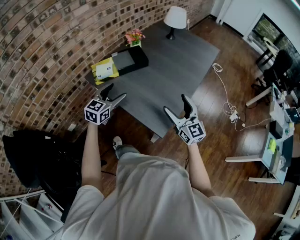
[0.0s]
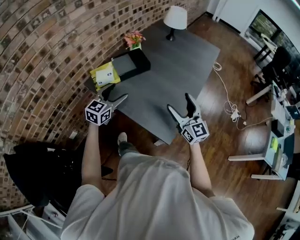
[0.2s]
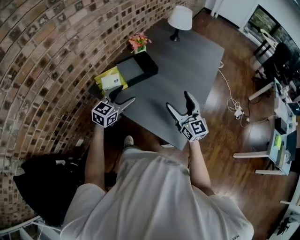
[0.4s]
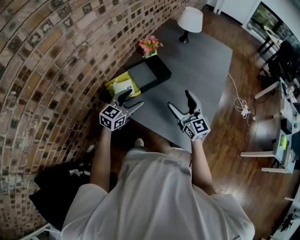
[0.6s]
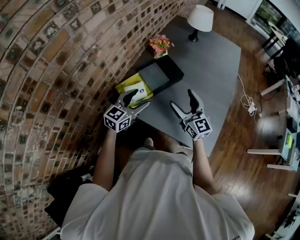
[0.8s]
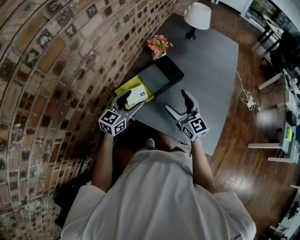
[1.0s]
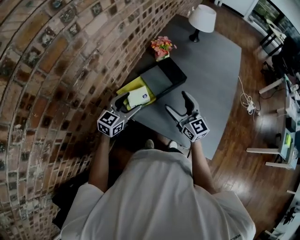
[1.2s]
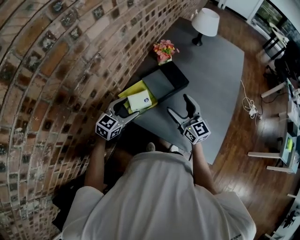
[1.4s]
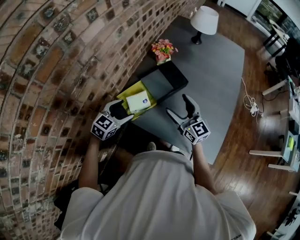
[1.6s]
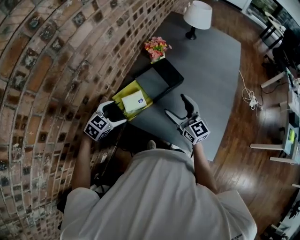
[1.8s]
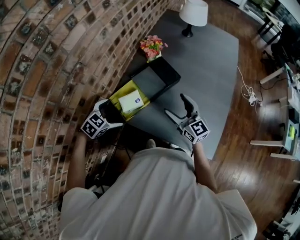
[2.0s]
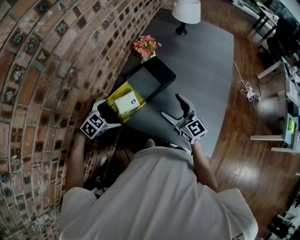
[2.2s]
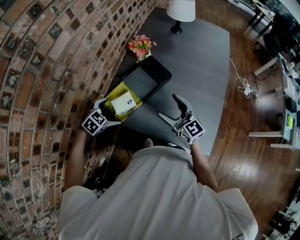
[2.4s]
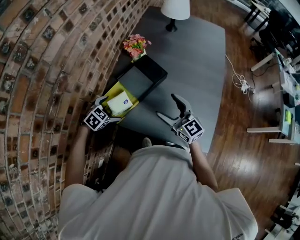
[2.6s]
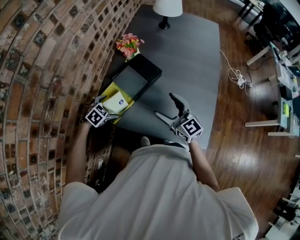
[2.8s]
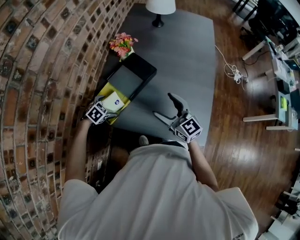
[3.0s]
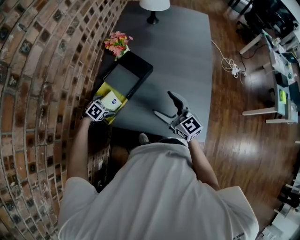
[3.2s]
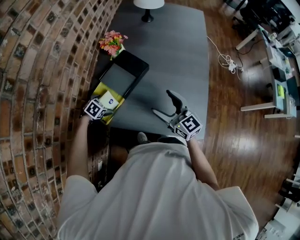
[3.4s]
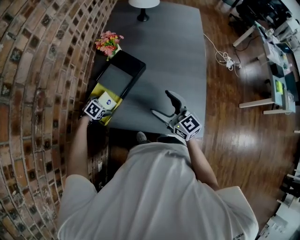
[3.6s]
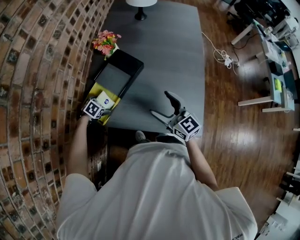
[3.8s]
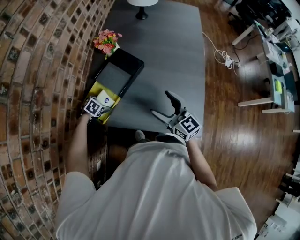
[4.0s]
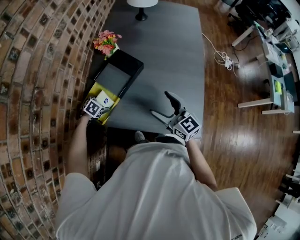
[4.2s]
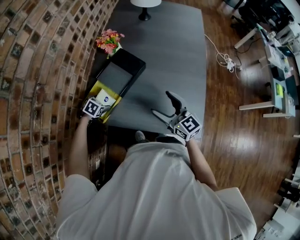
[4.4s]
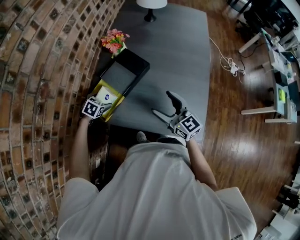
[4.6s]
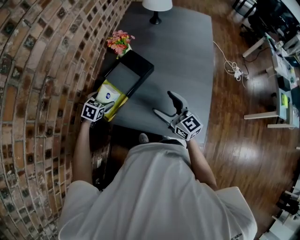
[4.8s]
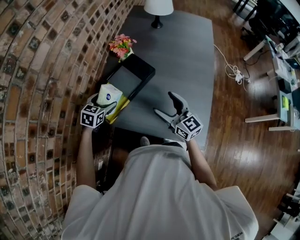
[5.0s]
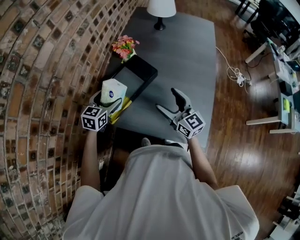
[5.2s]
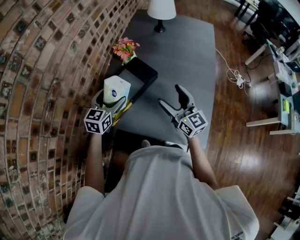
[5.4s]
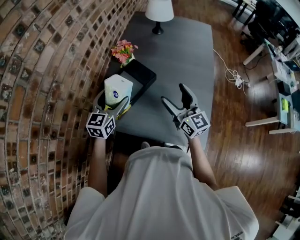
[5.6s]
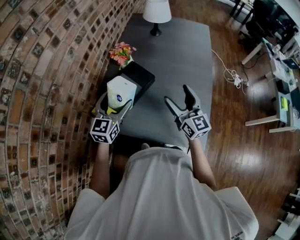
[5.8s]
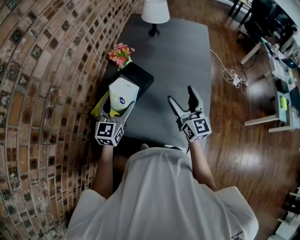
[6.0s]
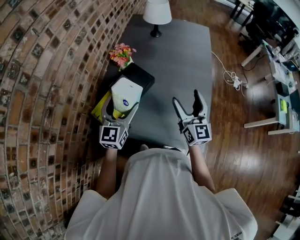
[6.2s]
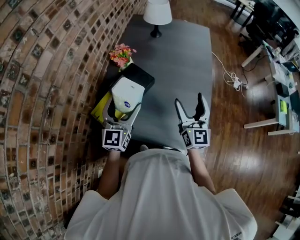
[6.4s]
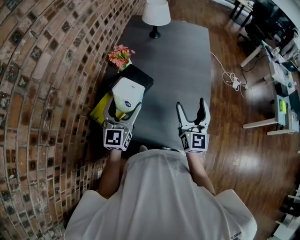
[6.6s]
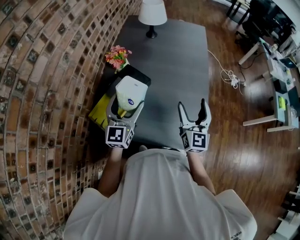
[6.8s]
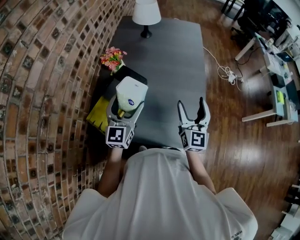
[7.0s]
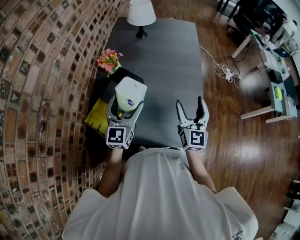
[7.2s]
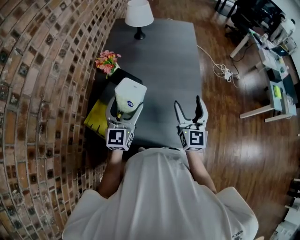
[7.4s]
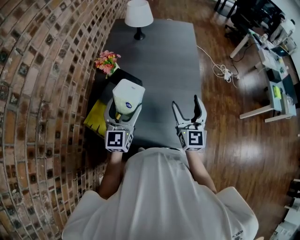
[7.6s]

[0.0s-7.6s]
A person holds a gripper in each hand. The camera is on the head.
0.0s to 1.6s: Both grippers travel together to the left and forward, approximately 35 cm. The left gripper changes its angle by roughly 30 degrees.
1.6s to 3.0s: The right gripper heads to the right, covering about 5 cm. The left gripper goes approximately 15 cm downward and forward, and points its fingers roughly 30 degrees further downward.
4.6s to 6.0s: The left gripper is displaced upward and to the right by some 30 cm, and tilts its fingers roughly 60 degrees upward. Meanwhile the right gripper is displaced upward and to the right by some 10 cm, and swivels approximately 20 degrees.
6.0s to 7.6s: The grippers both shift to the right by roughly 5 cm. The right gripper swivels approximately 20 degrees.

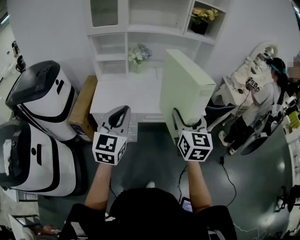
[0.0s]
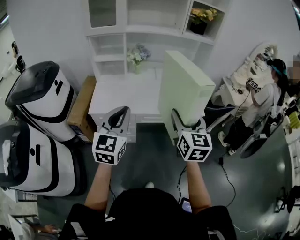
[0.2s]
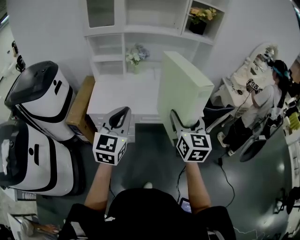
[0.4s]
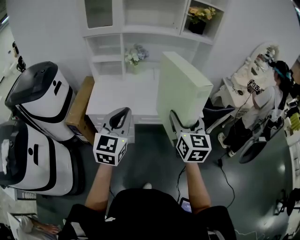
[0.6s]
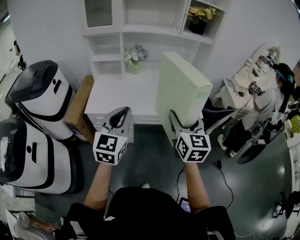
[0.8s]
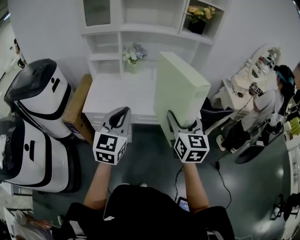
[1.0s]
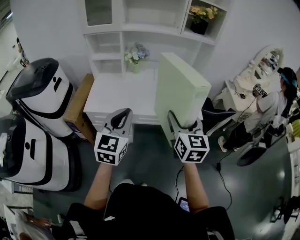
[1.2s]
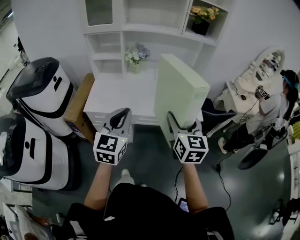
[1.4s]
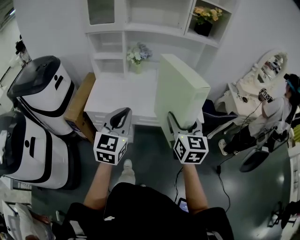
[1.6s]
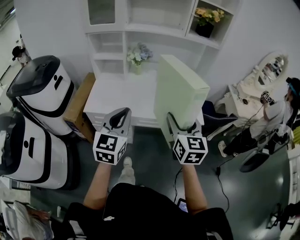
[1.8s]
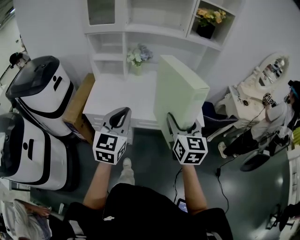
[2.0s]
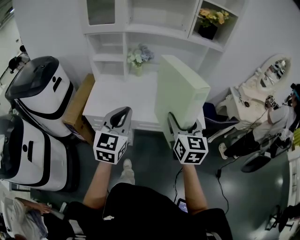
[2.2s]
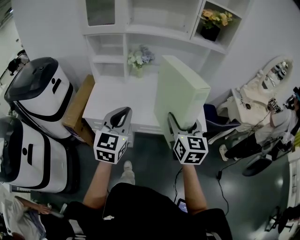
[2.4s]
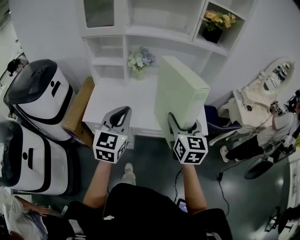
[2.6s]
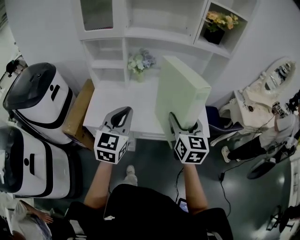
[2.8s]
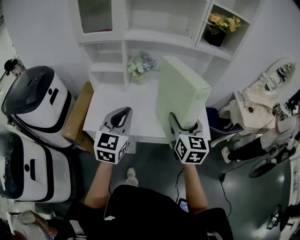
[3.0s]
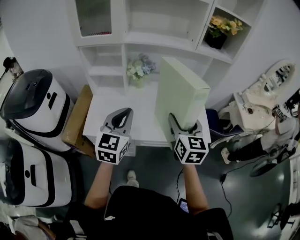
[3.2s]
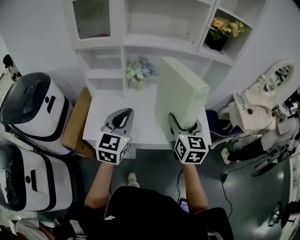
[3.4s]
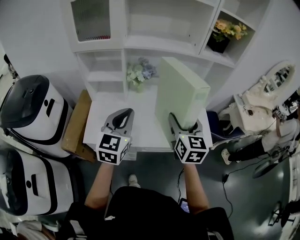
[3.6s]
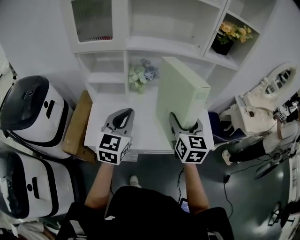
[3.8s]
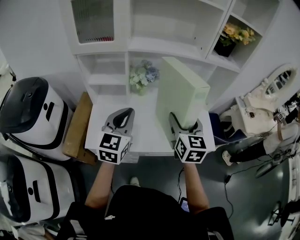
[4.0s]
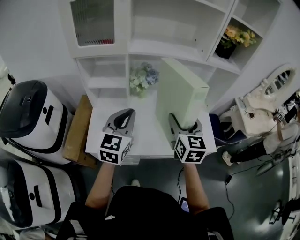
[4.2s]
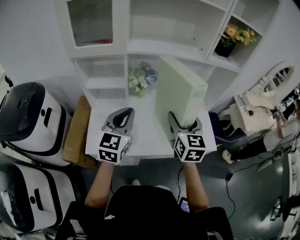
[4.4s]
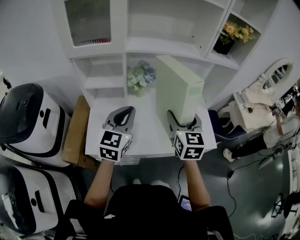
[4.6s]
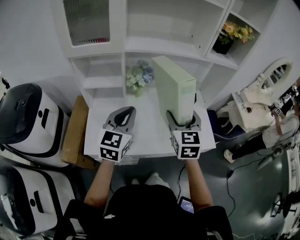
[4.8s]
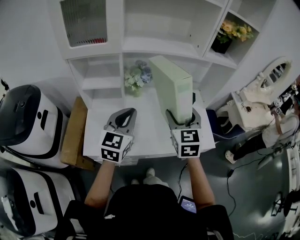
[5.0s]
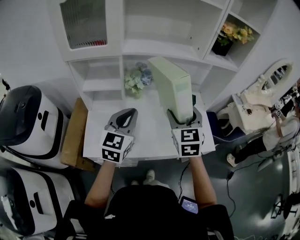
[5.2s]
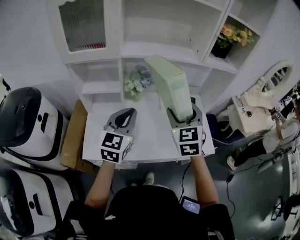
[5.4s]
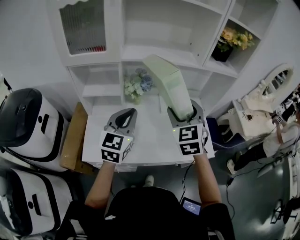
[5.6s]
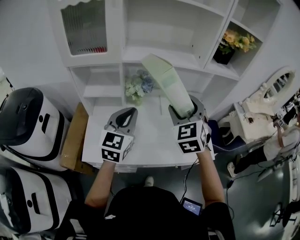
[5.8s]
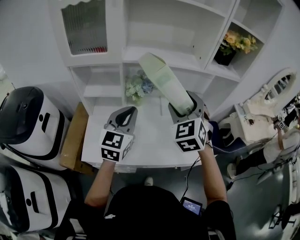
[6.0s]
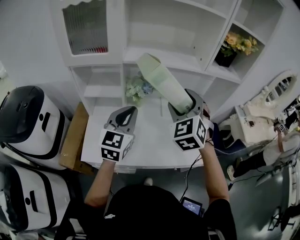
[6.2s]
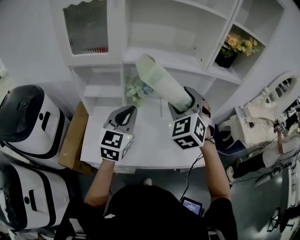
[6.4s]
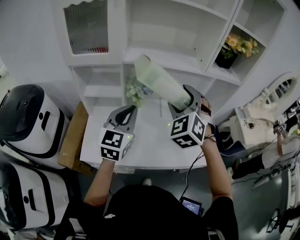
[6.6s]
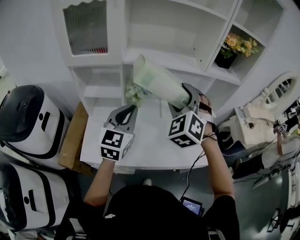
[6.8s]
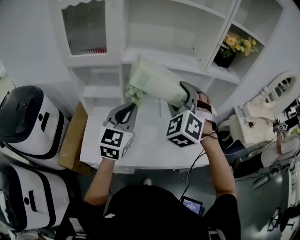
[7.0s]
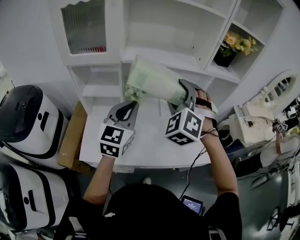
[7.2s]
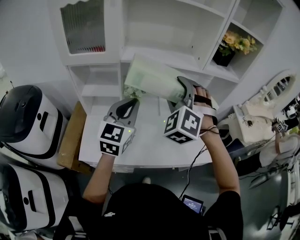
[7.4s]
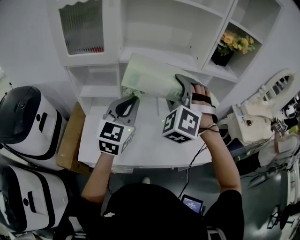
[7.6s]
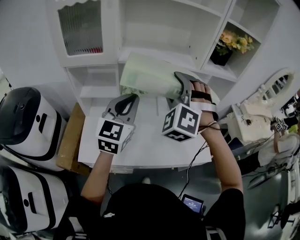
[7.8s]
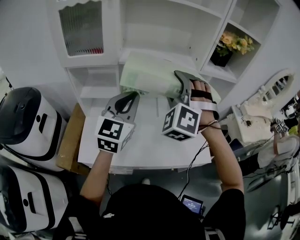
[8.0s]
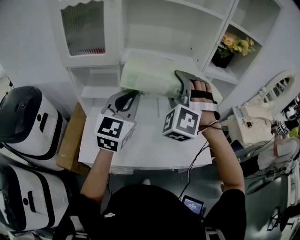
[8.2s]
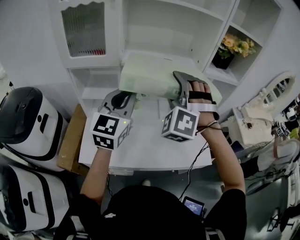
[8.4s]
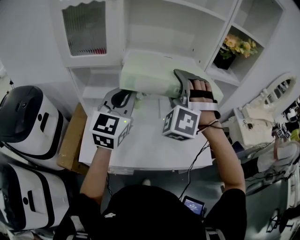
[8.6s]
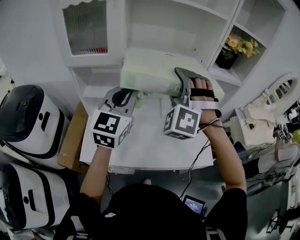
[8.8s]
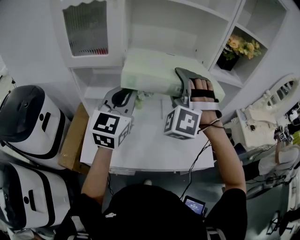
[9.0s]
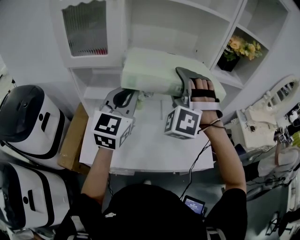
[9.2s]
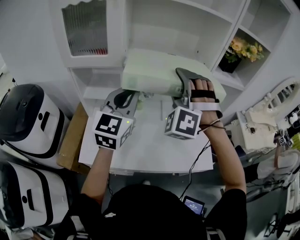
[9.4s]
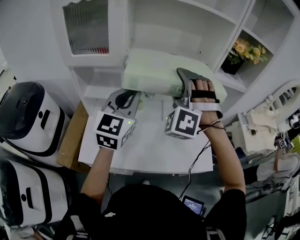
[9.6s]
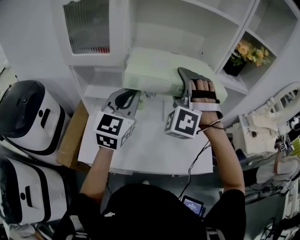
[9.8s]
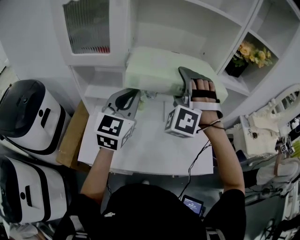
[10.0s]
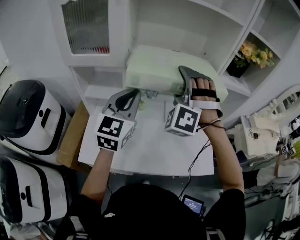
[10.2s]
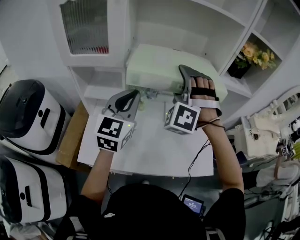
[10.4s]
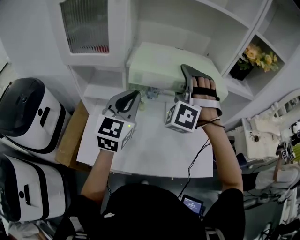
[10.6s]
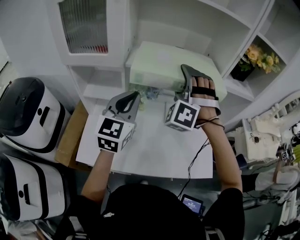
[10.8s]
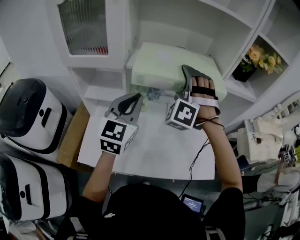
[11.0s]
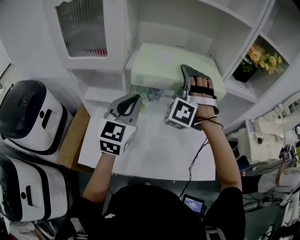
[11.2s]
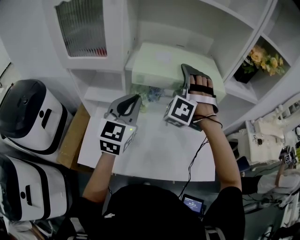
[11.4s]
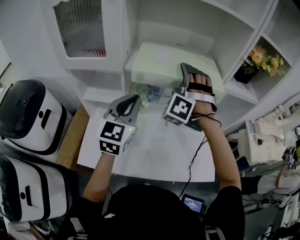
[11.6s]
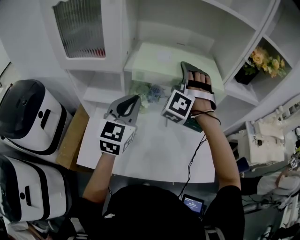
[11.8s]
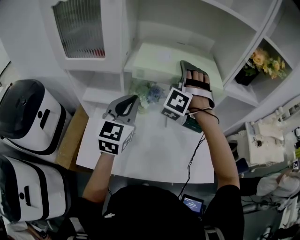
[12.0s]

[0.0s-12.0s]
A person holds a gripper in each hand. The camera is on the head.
0.0s to 1.6s: The left gripper travels to the right by about 10 cm. The right gripper travels forward and to the right by approximately 10 cm.
1.6s to 3.0s: The grippers both shift forward by about 15 cm.
3.0s to 4.4s: Both grippers move forward and to the left, some 15 cm.
4.4s to 6.0s: The right gripper moves forward and upward, roughly 10 cm, and rotates around the line of its fingers by some 40 degrees, counterclockwise from behind, while the left gripper heads forward, covering approximately 5 cm.
6.0s to 7.6s: The left gripper shifts by some 5 cm; the right gripper ends up some 5 cm from where it was, and changes its angle by roughly 30 degrees.
7.6s to 9.0s: The left gripper is displaced upward by some 5 cm.
9.0s to 10.4s: The right gripper is displaced forward by about 10 cm. Meanwhile the left gripper ends up about 5 cm from where it was.
10.4s to 12.0s: The left gripper shifts by approximately 5 cm. The right gripper is displaced forward by some 10 cm.

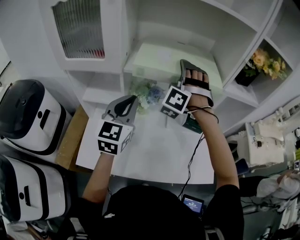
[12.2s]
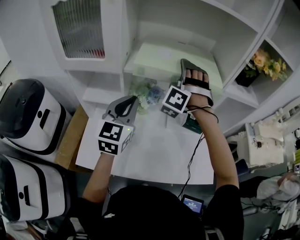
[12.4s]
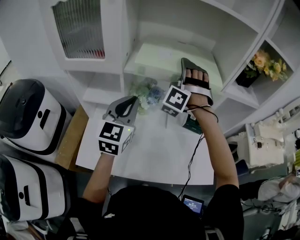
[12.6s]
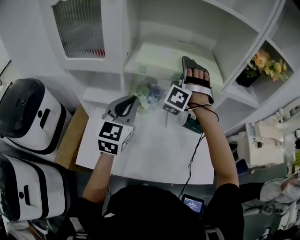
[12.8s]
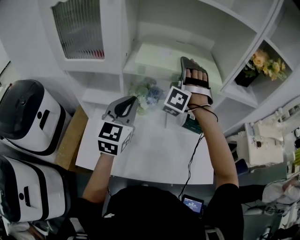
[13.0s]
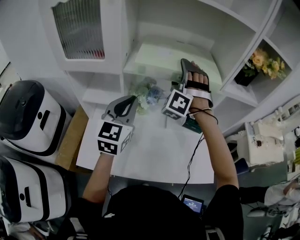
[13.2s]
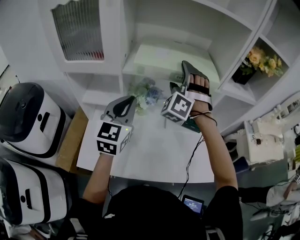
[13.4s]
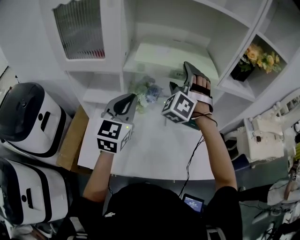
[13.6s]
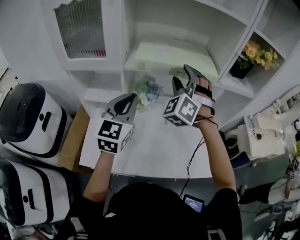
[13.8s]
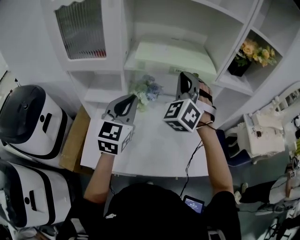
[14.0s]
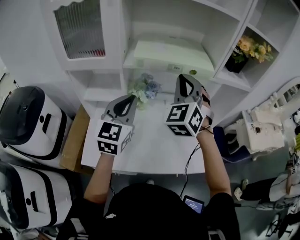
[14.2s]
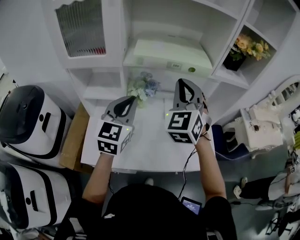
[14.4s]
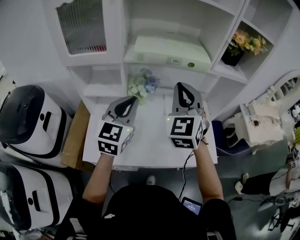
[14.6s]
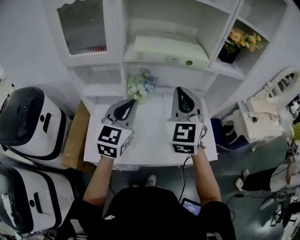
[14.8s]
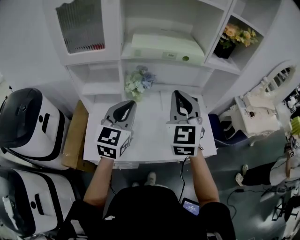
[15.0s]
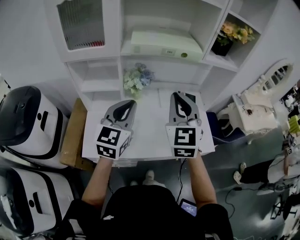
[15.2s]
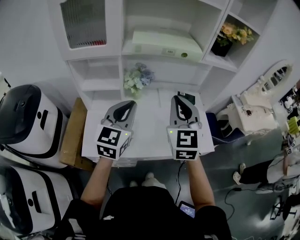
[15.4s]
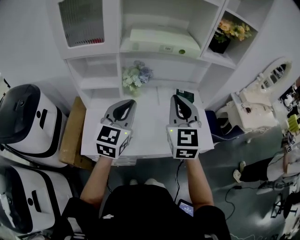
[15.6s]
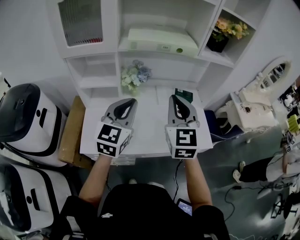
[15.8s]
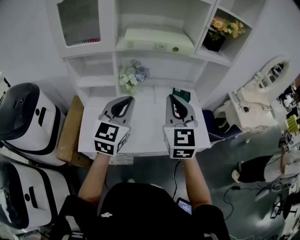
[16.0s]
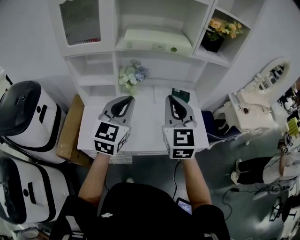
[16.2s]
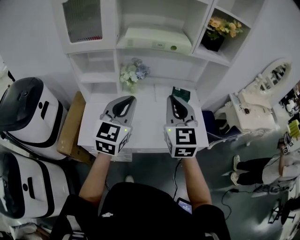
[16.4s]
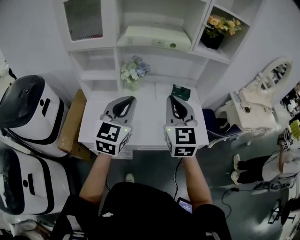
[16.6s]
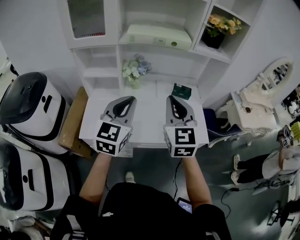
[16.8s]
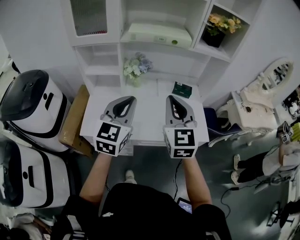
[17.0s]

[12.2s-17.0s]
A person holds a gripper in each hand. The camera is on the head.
12.2s to 13.8s: The right gripper moves backward, roughly 5 cm, and changes its angle by approximately 20 degrees.
13.8s to 15.4s: The right gripper is displaced backward by about 25 cm, rotates around the line of its fingers by some 50 degrees, clockwise from behind, and closes. Meanwhile the left gripper moves backward, roughly 15 cm.
15.4s to 17.0s: The two grippers go about 10 cm backward and to the right.
